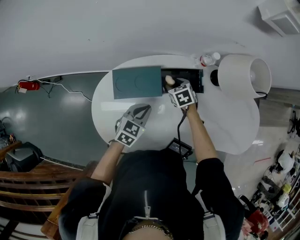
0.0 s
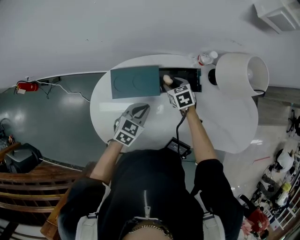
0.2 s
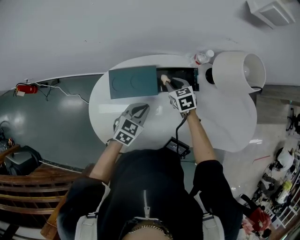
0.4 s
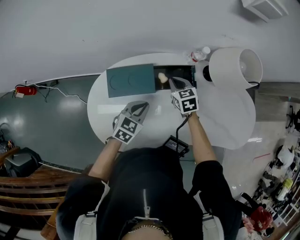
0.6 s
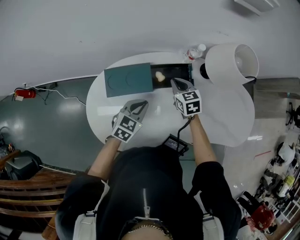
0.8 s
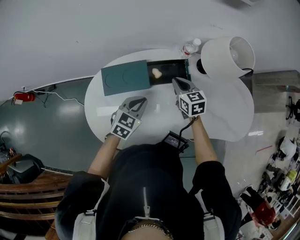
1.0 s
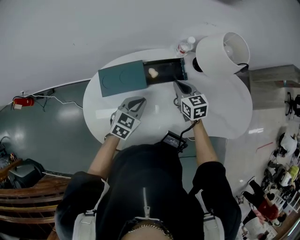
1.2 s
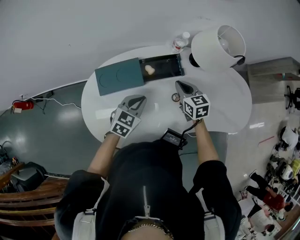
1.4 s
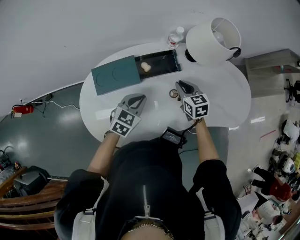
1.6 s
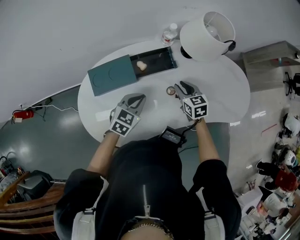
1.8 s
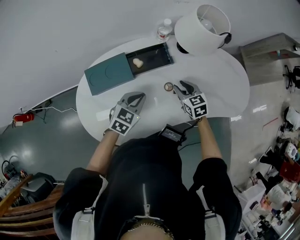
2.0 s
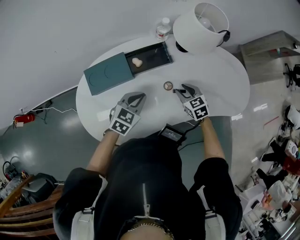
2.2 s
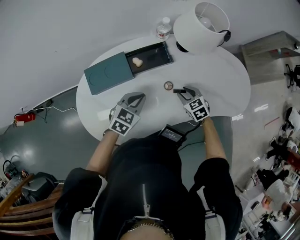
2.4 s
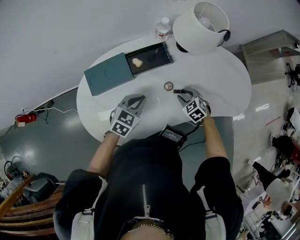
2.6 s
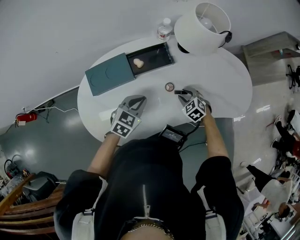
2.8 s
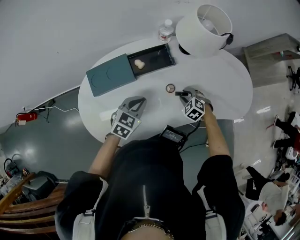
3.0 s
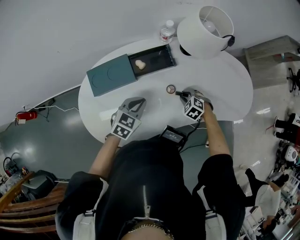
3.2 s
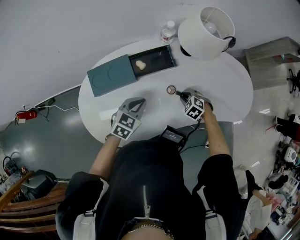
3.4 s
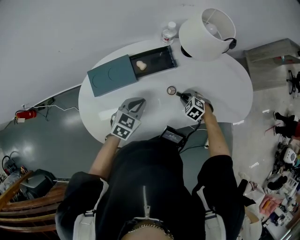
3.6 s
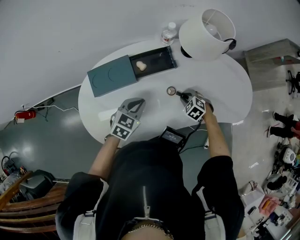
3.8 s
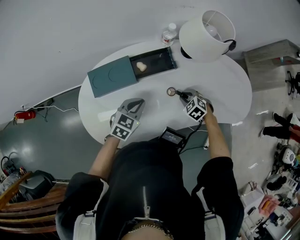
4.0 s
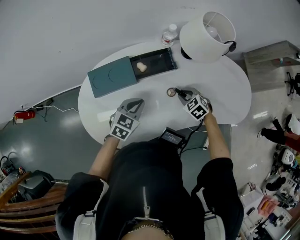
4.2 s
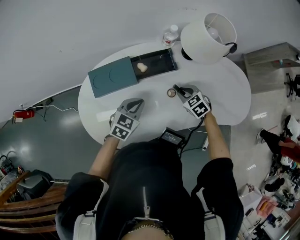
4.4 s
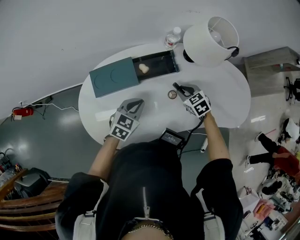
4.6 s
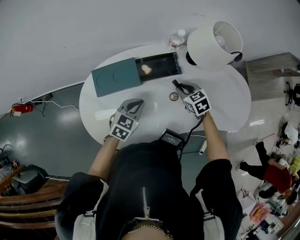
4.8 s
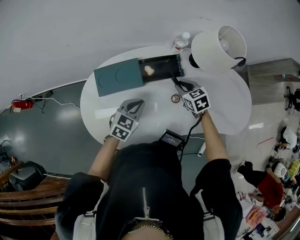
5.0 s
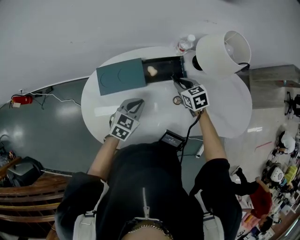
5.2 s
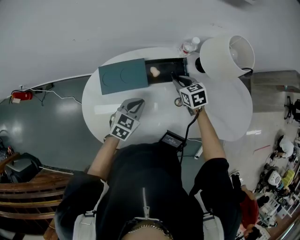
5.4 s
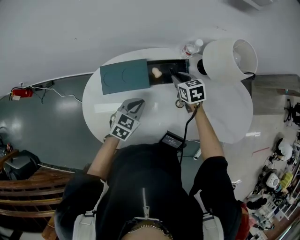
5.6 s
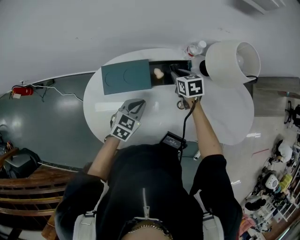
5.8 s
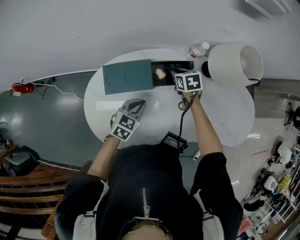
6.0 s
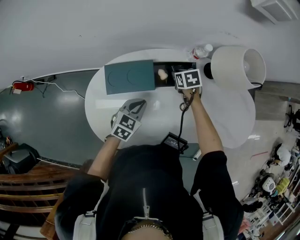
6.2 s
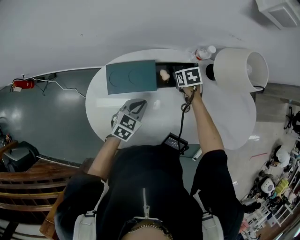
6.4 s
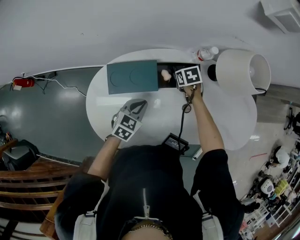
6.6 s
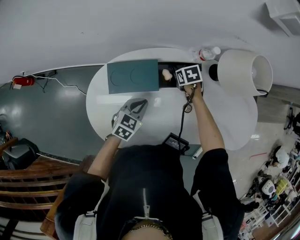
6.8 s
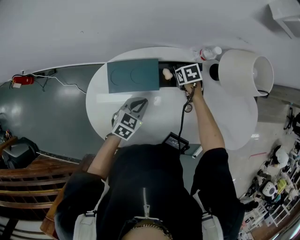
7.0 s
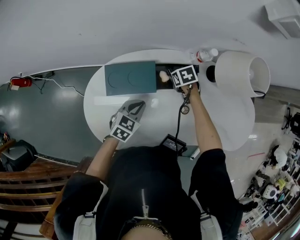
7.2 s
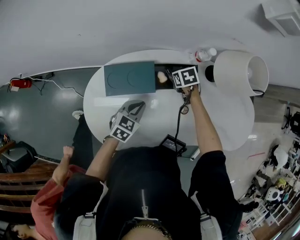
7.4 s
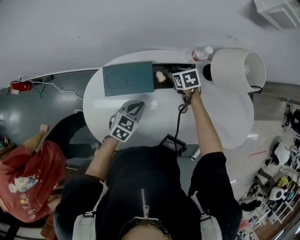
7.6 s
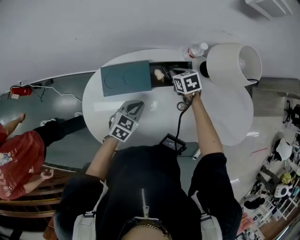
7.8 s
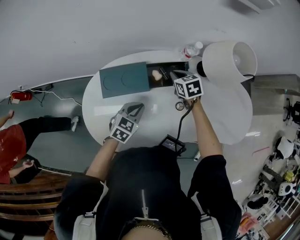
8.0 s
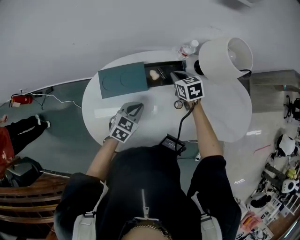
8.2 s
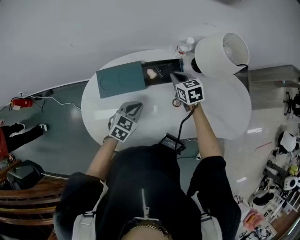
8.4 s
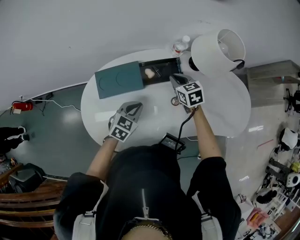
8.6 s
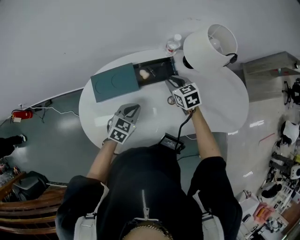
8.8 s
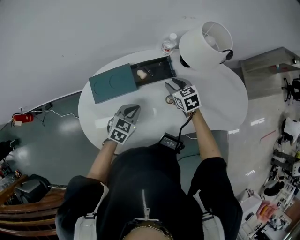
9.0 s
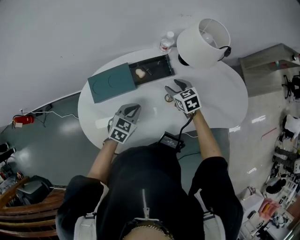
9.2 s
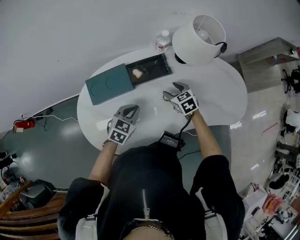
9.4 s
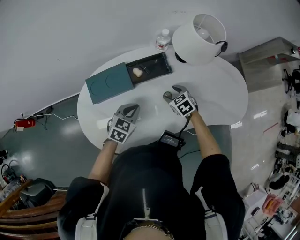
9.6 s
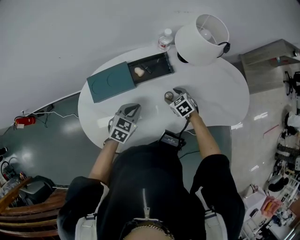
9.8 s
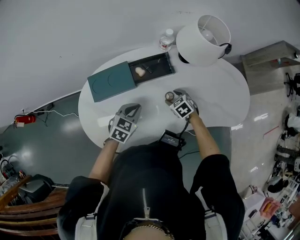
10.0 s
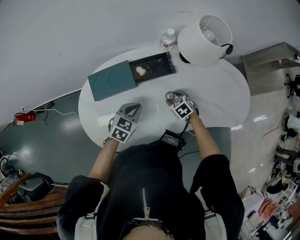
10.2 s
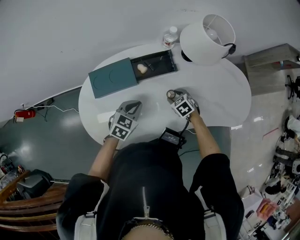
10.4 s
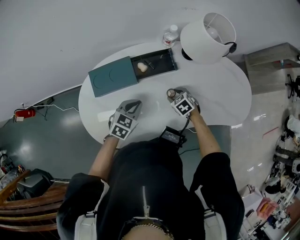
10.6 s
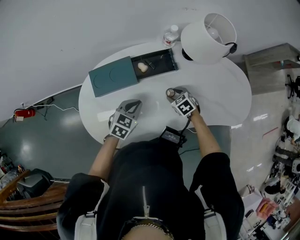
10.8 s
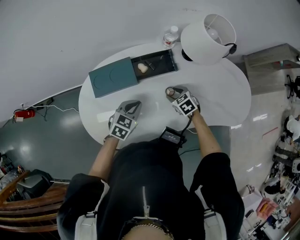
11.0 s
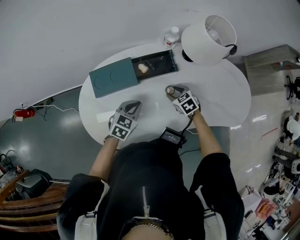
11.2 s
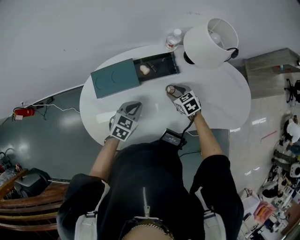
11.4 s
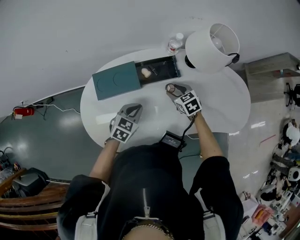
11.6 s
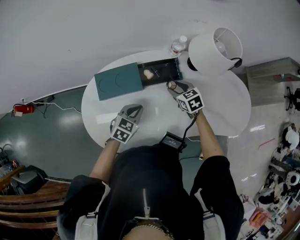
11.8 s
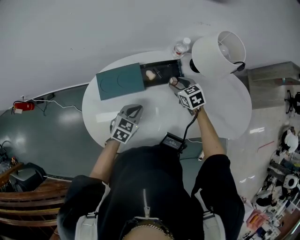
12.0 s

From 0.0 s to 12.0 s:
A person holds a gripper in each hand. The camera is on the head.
From 0.0 s to 1.6 s: The right gripper is displaced to the right, upward and backward by some 20 cm, rotates approximately 30 degrees, and closes, while the left gripper shifts approximately 5 cm to the right.
From 1.6 s to 3.0 s: The right gripper shifts about 15 cm downward, backward and to the right, swivels roughly 50 degrees, and opens.
From 3.0 s to 4.4 s: The right gripper moves upward, roughly 5 cm.
From 4.4 s to 6.0 s: The right gripper heads forward and to the left, covering approximately 20 cm, and turns by roughly 20 degrees. The left gripper is displaced to the left by some 5 cm.
From 6.0 s to 7.6 s: The grippers make only small movements.
From 7.6 s to 9.0 s: The right gripper heads backward, to the right and upward, covering some 15 cm, rotates roughly 20 degrees, and closes, then reopens. The left gripper travels to the right by approximately 5 cm.
From 9.0 s to 10.4 s: The right gripper heads downward and backward, covering approximately 15 cm, and rotates some 20 degrees.
From 10.4 s to 12.0 s: The right gripper is displaced forward and upward by approximately 15 cm.

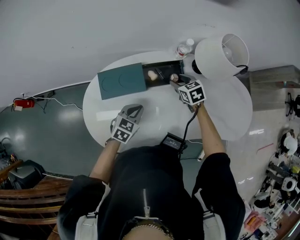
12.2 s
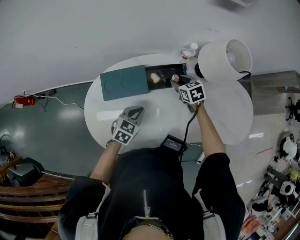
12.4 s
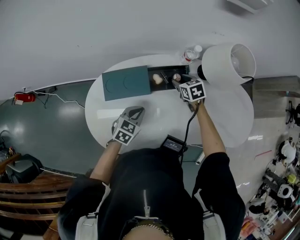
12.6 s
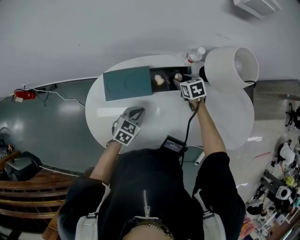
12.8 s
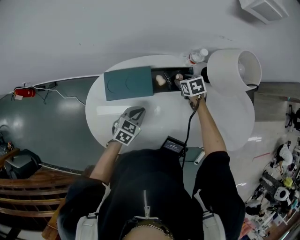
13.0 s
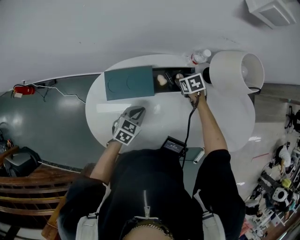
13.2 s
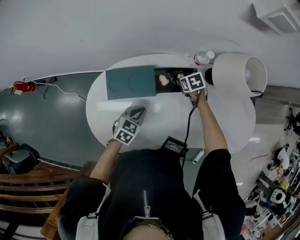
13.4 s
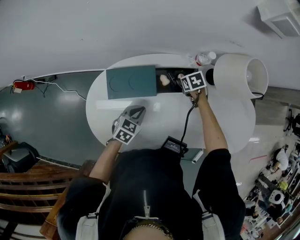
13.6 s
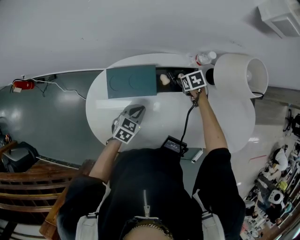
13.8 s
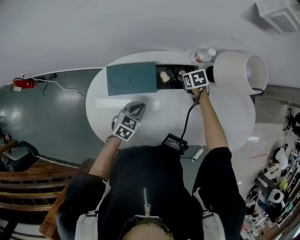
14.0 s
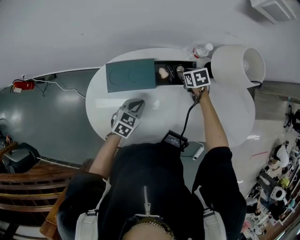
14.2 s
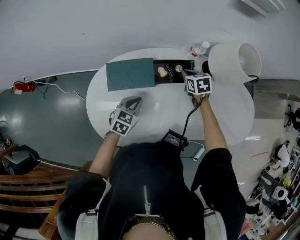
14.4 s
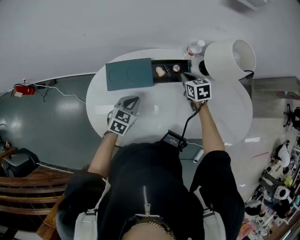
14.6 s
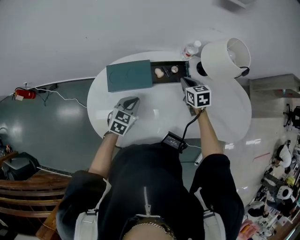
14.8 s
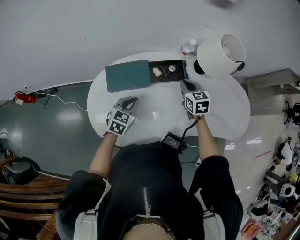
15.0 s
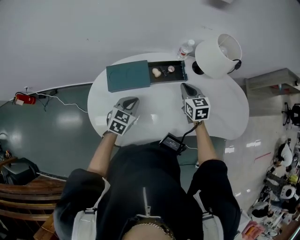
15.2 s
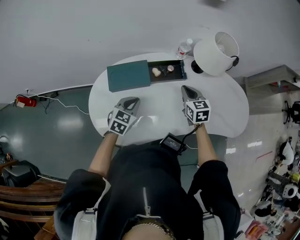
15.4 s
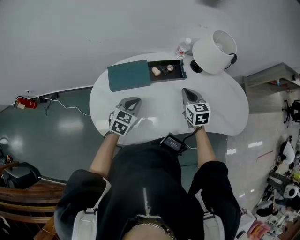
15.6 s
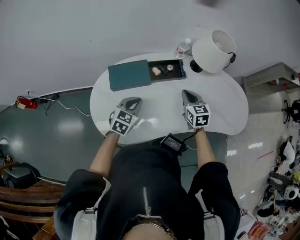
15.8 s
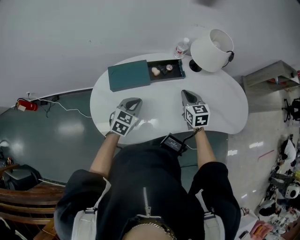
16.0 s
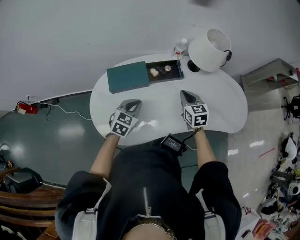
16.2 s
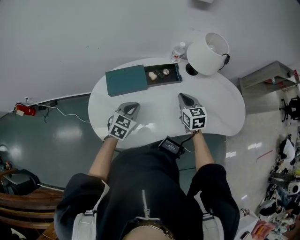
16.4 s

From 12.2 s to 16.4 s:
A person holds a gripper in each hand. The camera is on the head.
From 12.2 s to 13.6 s: The right gripper travels downward and forward by approximately 10 cm, and changes its angle by some 20 degrees.
From 13.6 s to 15.0 s: The left gripper heads upward, covering approximately 5 cm. The right gripper shifts approximately 15 cm upward and backward, tilts its fingers approximately 30 degrees upward, and closes its fingers.
From 15.0 s to 16.4 s: The right gripper goes about 10 cm backward, while the left gripper ends up some 5 cm from where it was.

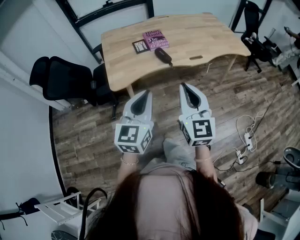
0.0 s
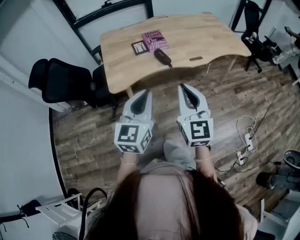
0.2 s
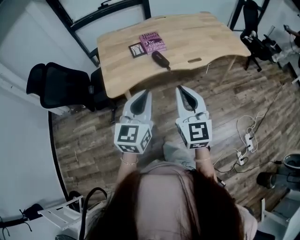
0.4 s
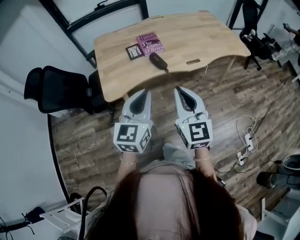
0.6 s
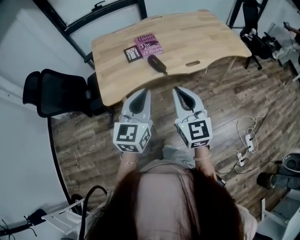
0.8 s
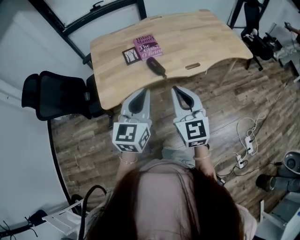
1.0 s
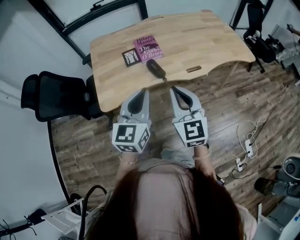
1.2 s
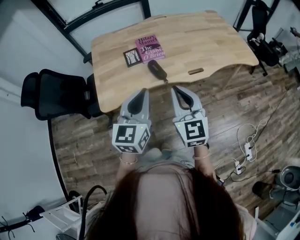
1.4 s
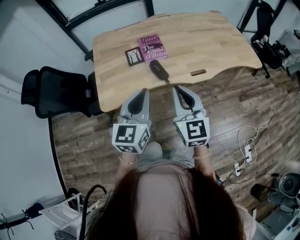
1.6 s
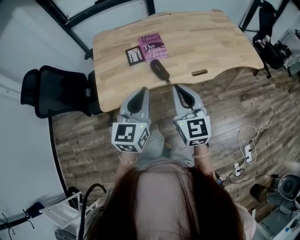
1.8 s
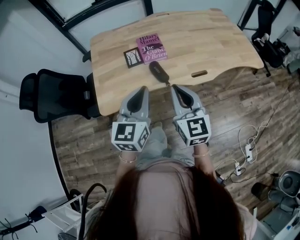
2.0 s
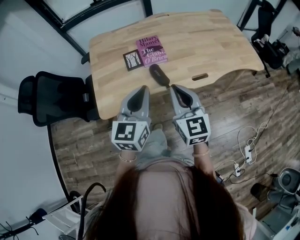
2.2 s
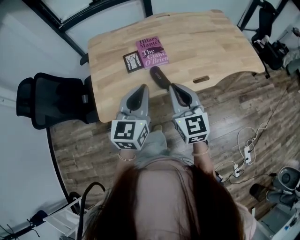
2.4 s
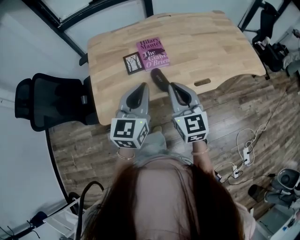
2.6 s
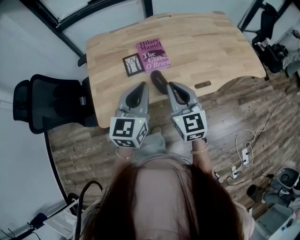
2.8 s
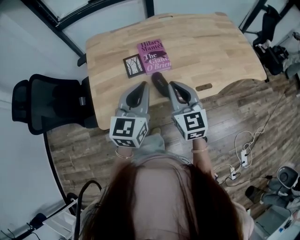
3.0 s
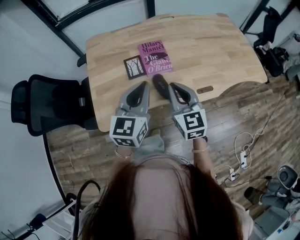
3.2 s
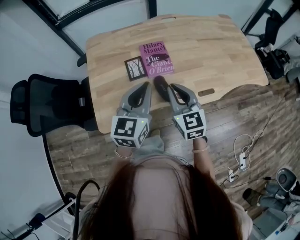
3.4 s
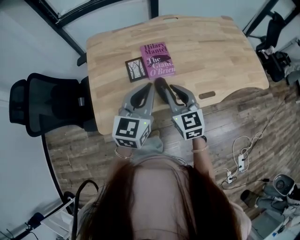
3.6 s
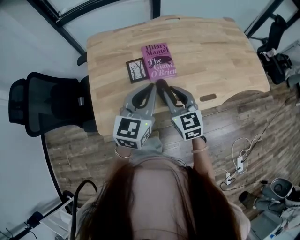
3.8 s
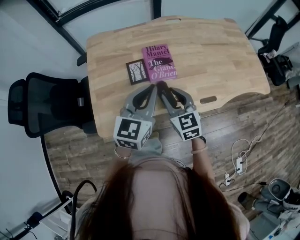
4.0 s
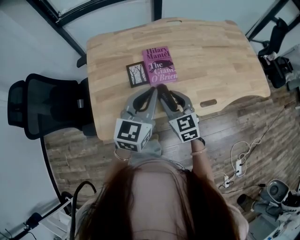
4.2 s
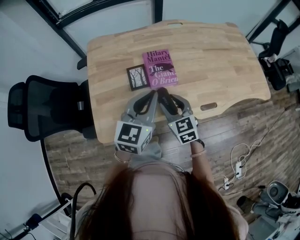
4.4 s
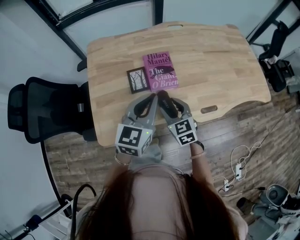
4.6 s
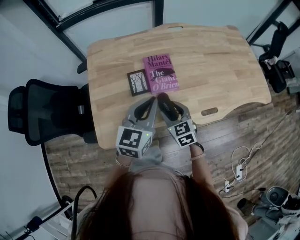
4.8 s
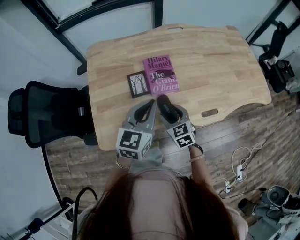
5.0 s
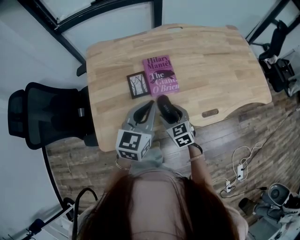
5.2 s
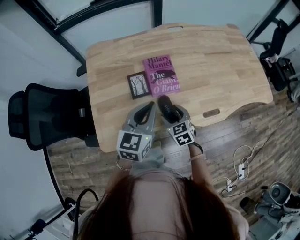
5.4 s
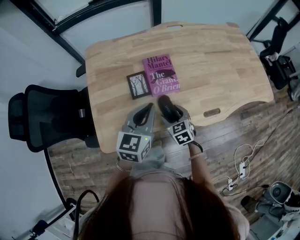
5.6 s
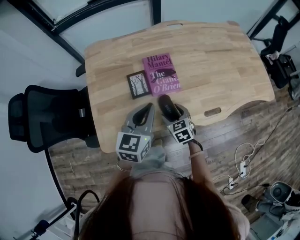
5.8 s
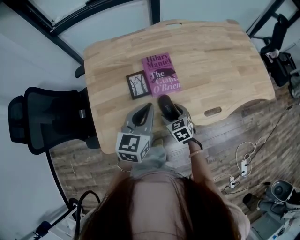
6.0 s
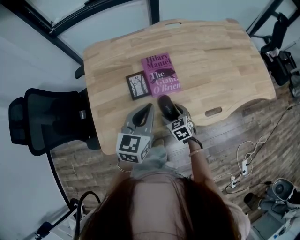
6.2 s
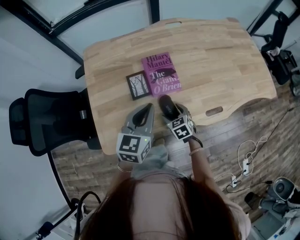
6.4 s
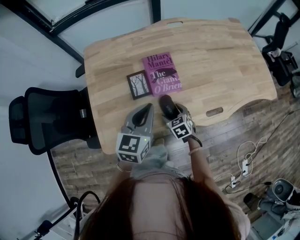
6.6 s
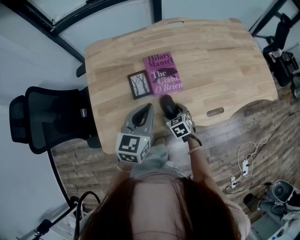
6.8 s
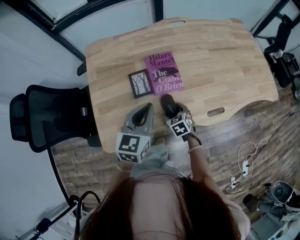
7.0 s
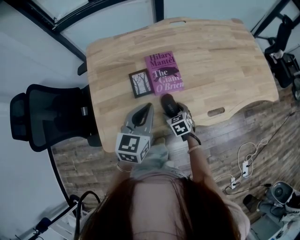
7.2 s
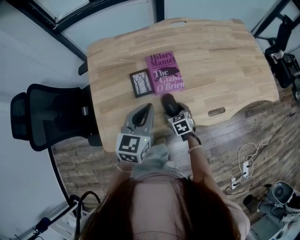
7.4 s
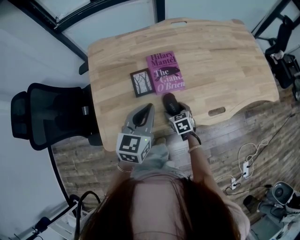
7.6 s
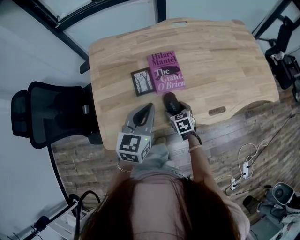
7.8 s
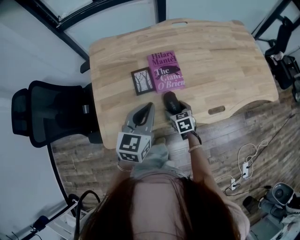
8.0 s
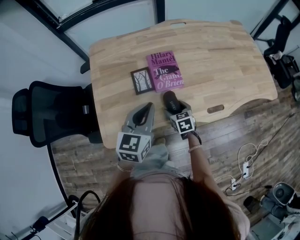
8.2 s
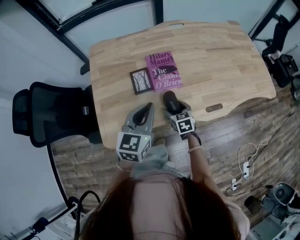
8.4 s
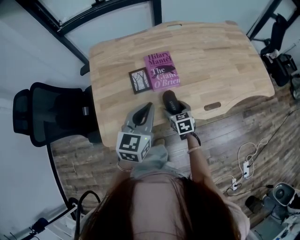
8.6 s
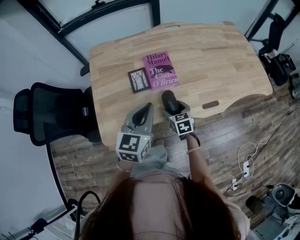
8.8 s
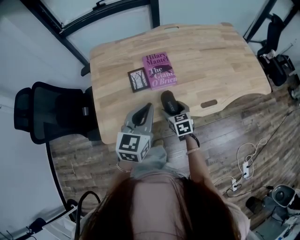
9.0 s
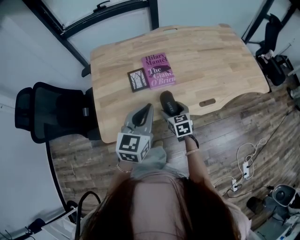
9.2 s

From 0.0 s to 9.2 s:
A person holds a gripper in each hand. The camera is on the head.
From 0.0 s to 1.6 s: Both grippers travel together forward, roughly 20 cm.
From 1.6 s to 3.0 s: Both grippers travel together forward, about 15 cm.
From 3.0 s to 4.6 s: The right gripper travels downward and forward by approximately 15 cm, rotates about 20 degrees, and opens its fingers, while the left gripper shifts roughly 10 cm forward.
From 4.6 s to 6.2 s: The right gripper is displaced downward by about 15 cm, and opens its fingers, while the left gripper moves about 5 cm.
From 6.2 s to 7.6 s: There are only small adjustments of the grippers.
From 7.6 s to 9.2 s: The right gripper heads upward and backward, covering about 10 cm, while the left gripper heads backward, covering roughly 10 cm.
